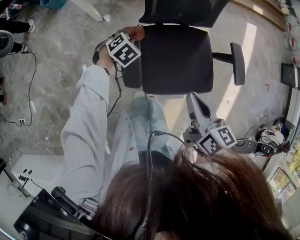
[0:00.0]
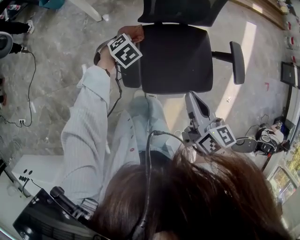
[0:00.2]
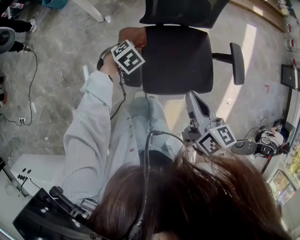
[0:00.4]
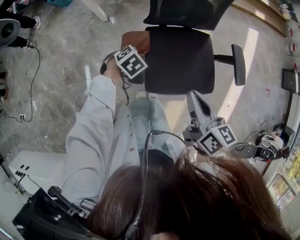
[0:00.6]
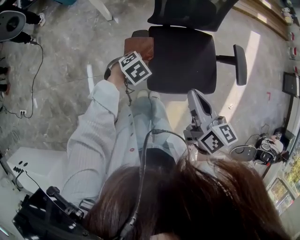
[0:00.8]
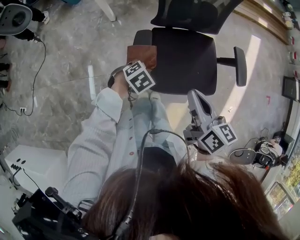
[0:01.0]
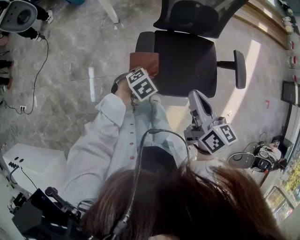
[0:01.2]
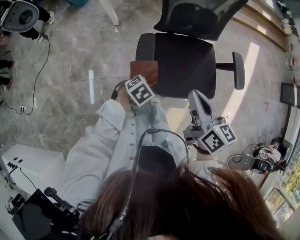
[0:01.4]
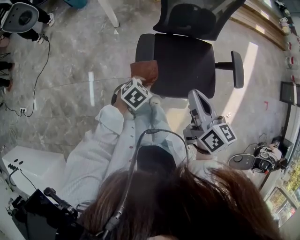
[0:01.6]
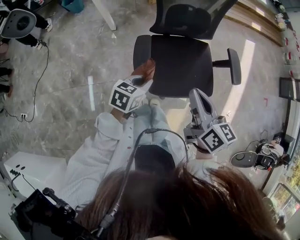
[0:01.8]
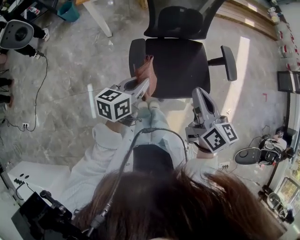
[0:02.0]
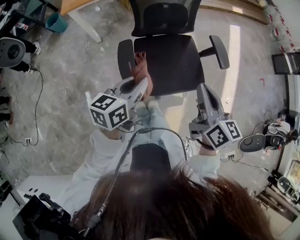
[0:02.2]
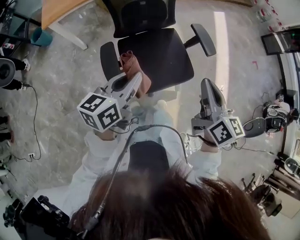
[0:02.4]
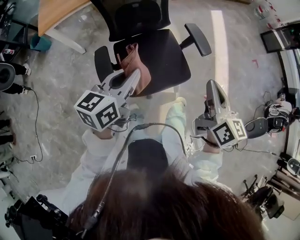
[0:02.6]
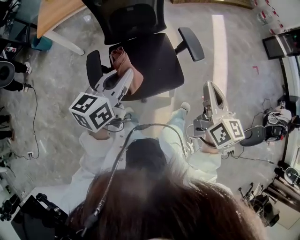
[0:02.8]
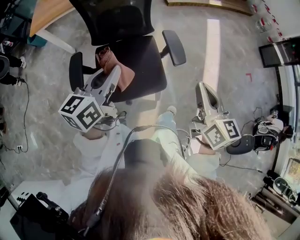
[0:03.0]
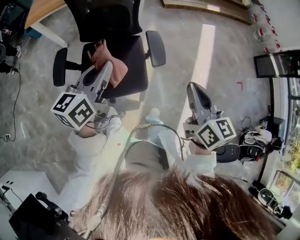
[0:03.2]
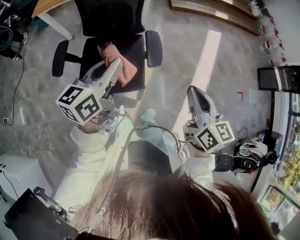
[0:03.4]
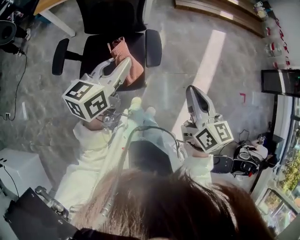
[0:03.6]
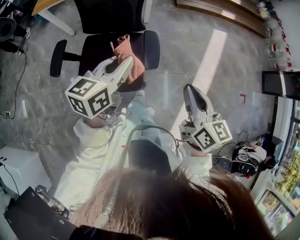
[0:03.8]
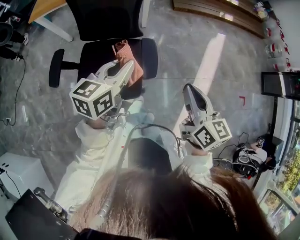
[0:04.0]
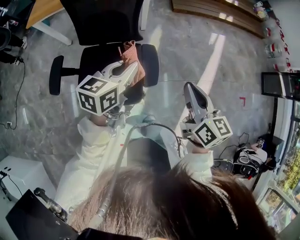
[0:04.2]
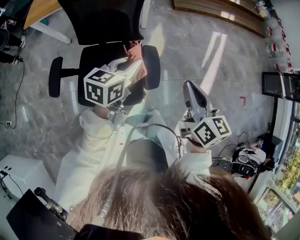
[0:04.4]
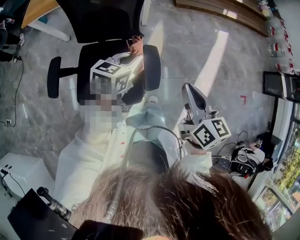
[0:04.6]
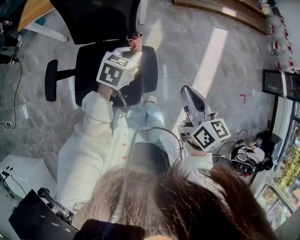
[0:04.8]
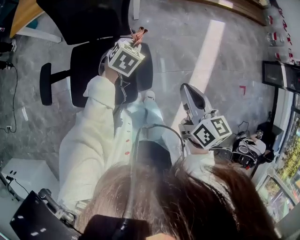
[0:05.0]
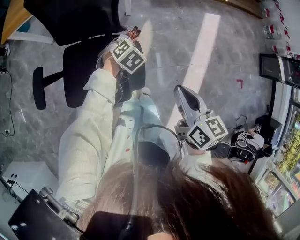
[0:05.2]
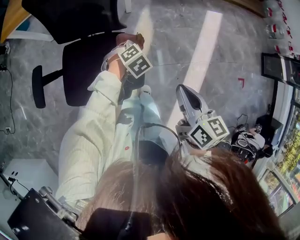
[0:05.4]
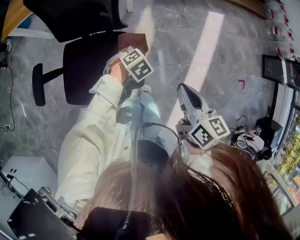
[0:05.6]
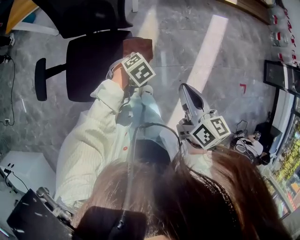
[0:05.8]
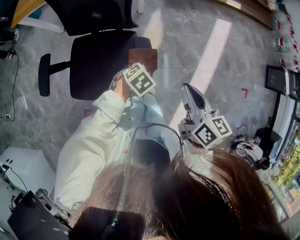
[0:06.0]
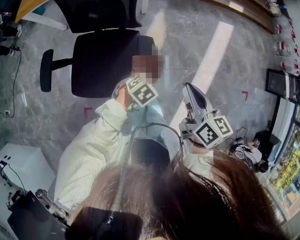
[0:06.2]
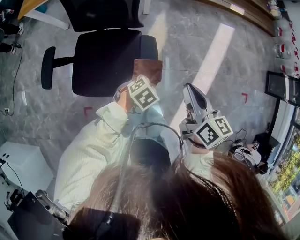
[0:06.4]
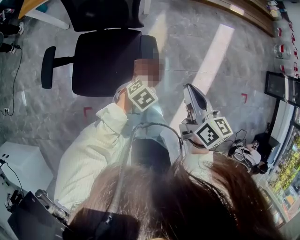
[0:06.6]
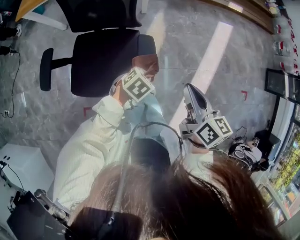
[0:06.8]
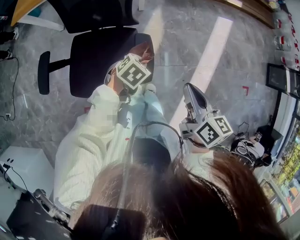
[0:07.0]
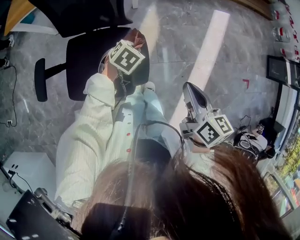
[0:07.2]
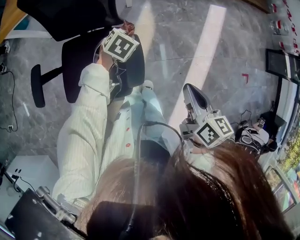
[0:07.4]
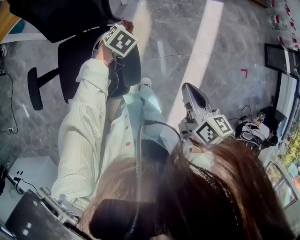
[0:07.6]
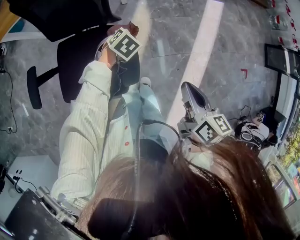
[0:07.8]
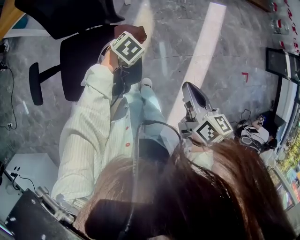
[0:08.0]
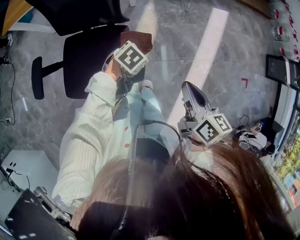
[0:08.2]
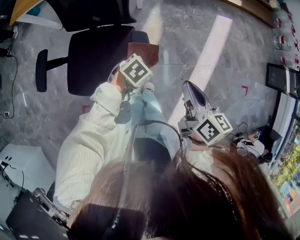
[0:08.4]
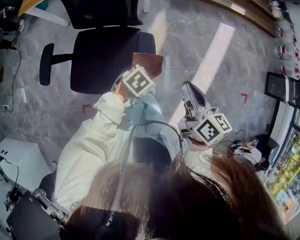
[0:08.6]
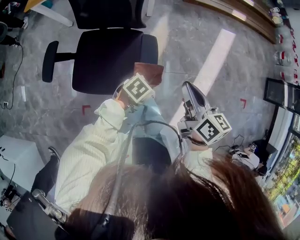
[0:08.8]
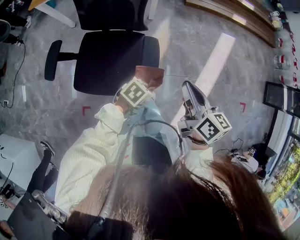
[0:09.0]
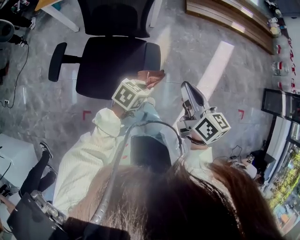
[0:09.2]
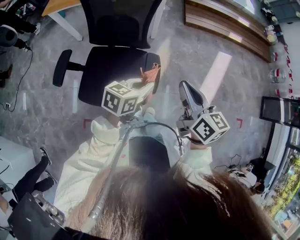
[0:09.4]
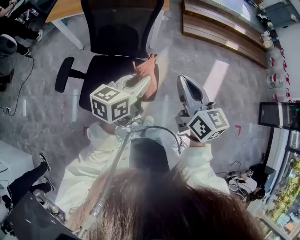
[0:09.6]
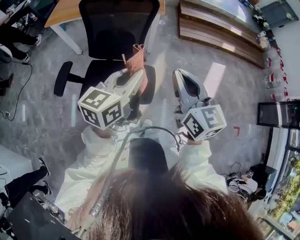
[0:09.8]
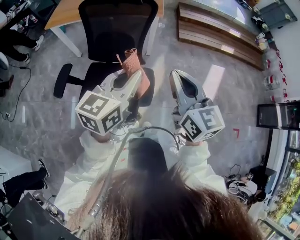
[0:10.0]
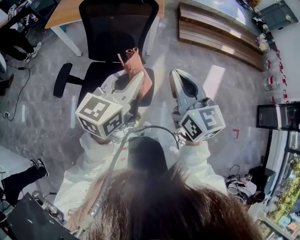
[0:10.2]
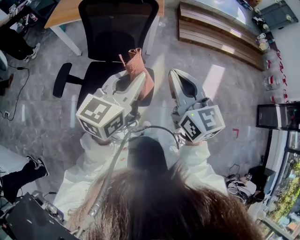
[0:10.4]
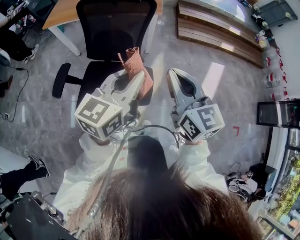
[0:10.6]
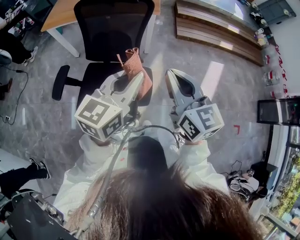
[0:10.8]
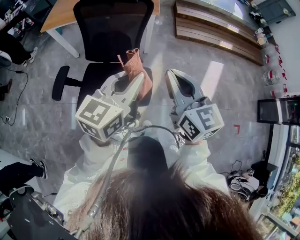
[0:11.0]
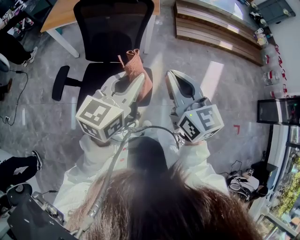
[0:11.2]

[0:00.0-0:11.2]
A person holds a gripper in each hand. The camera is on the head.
0:00.0 to 0:01.6: The right gripper shifts approximately 10 cm backward and upward. The left gripper heads backward, covering roughly 25 cm, and changes its angle by roughly 20 degrees.
0:01.6 to 0:03.2: The right gripper travels to the right by approximately 50 cm, while the left gripper travels to the right and upward by roughly 40 cm, and angles its fingers upward, by roughly 50 degrees.
0:03.2 to 0:04.8: The left gripper heads forward, downward and to the right, covering roughly 35 cm, and tilts its fingers about 30 degrees downward. The right gripper is displaced forward by approximately 20 cm.
0:04.8 to 0:06.4: The left gripper is displaced backward, downward and to the right by about 20 cm, and changes its angle by about 30 degrees.
0:06.4 to 0:08.0: The left gripper is displaced forward by some 15 cm; the right gripper shifts about 5 cm to the right.
0:08.0 to 0:09.6: The left gripper travels upward by about 30 cm, and tips its fingers upward by approximately 50 degrees. Meanwhile the right gripper moves upward, approximately 15 cm, and rotates approximately 30 degrees.
0:09.6 to 0:11.2: The left gripper goes roughly 10 cm upward.

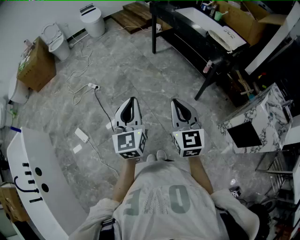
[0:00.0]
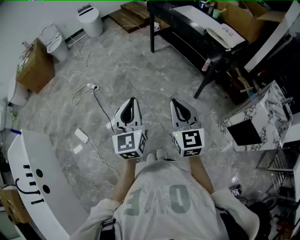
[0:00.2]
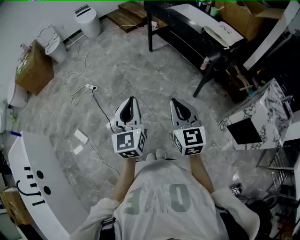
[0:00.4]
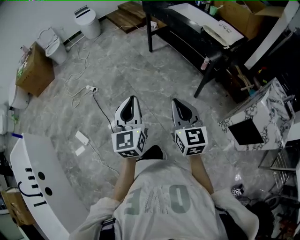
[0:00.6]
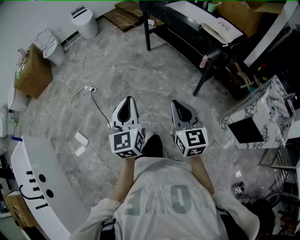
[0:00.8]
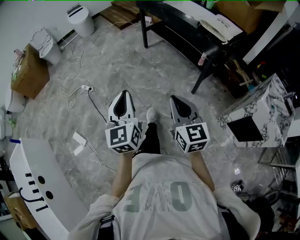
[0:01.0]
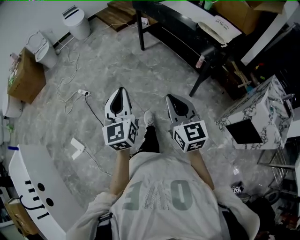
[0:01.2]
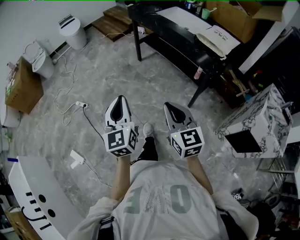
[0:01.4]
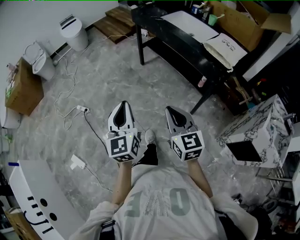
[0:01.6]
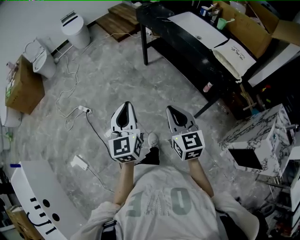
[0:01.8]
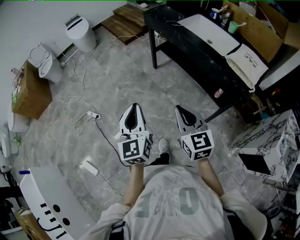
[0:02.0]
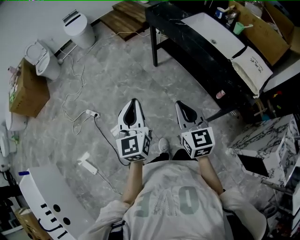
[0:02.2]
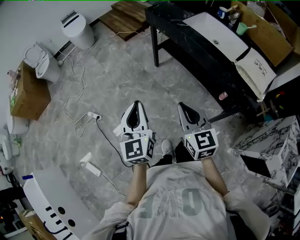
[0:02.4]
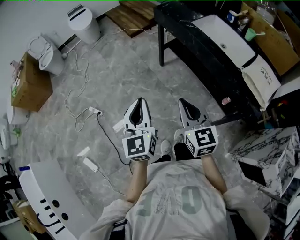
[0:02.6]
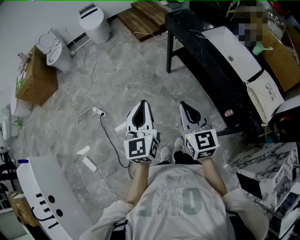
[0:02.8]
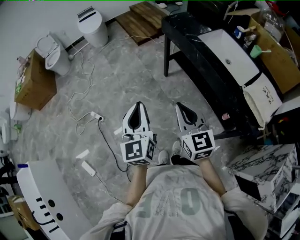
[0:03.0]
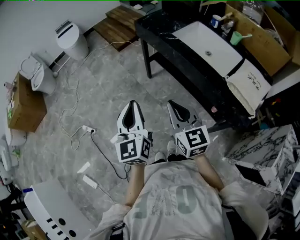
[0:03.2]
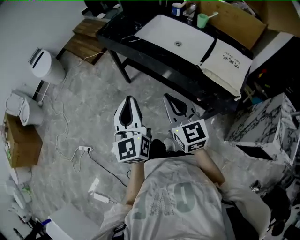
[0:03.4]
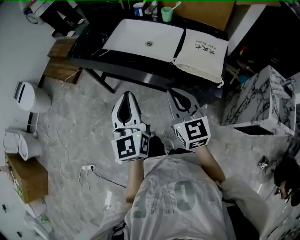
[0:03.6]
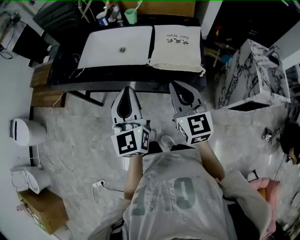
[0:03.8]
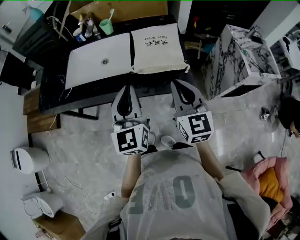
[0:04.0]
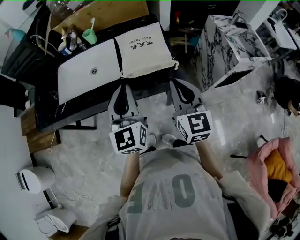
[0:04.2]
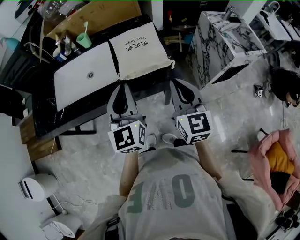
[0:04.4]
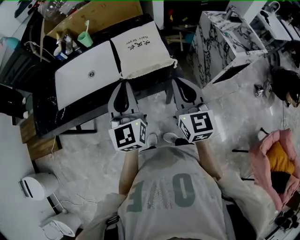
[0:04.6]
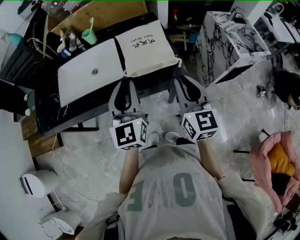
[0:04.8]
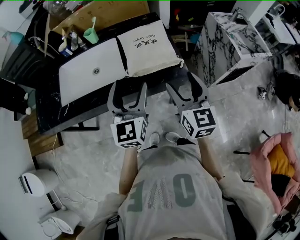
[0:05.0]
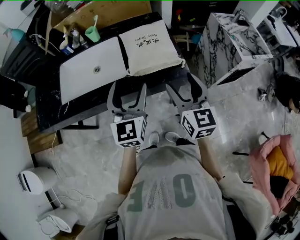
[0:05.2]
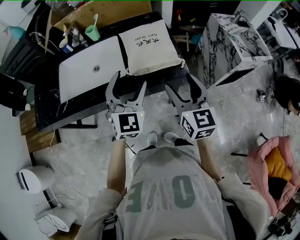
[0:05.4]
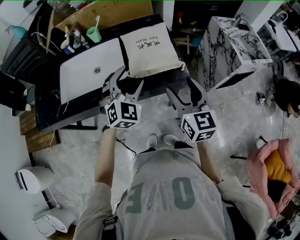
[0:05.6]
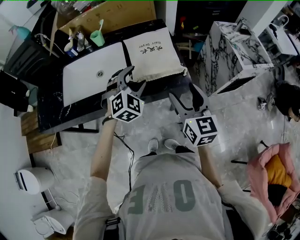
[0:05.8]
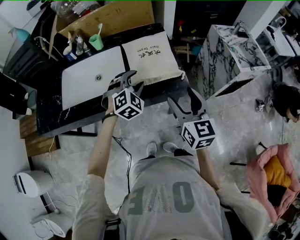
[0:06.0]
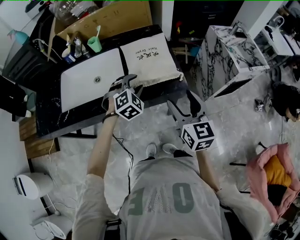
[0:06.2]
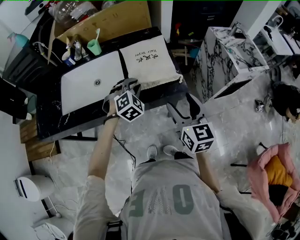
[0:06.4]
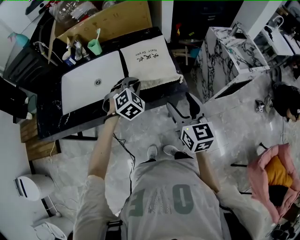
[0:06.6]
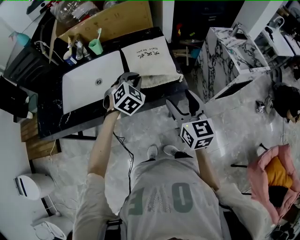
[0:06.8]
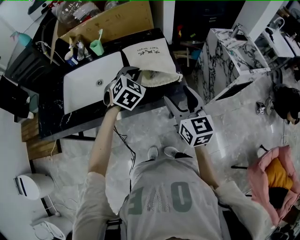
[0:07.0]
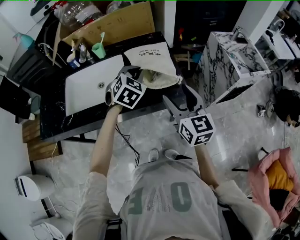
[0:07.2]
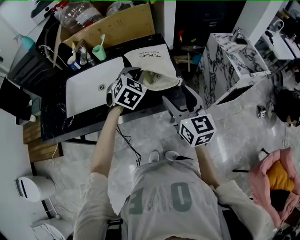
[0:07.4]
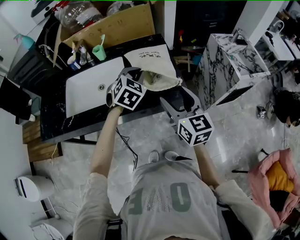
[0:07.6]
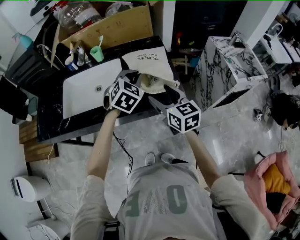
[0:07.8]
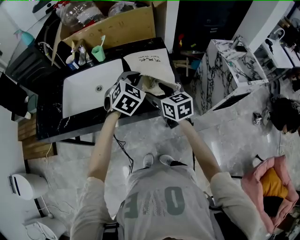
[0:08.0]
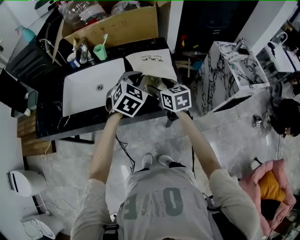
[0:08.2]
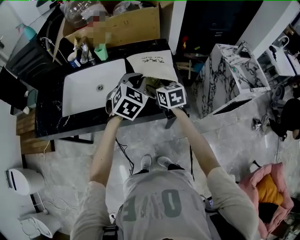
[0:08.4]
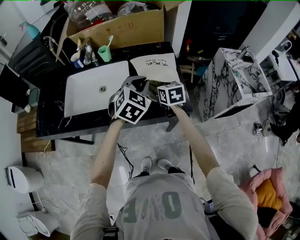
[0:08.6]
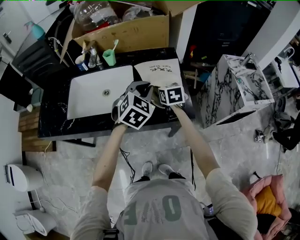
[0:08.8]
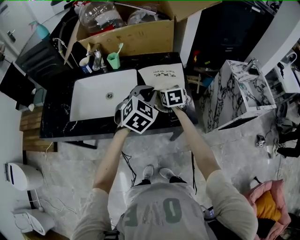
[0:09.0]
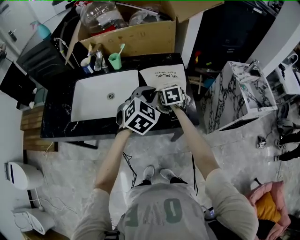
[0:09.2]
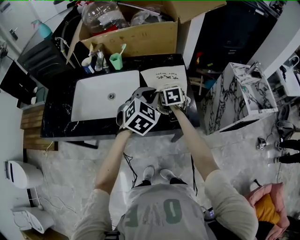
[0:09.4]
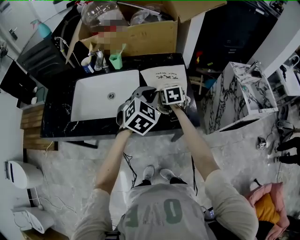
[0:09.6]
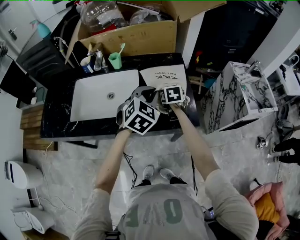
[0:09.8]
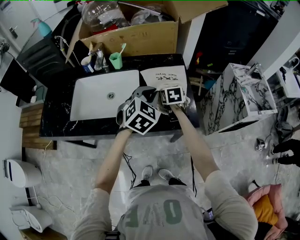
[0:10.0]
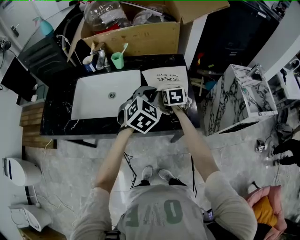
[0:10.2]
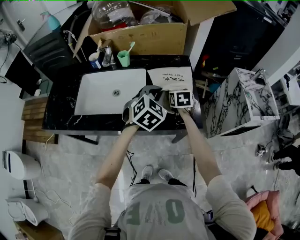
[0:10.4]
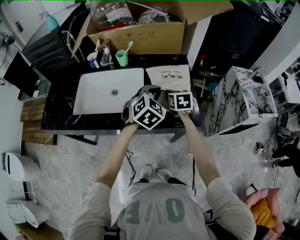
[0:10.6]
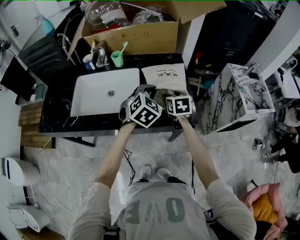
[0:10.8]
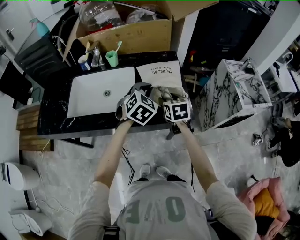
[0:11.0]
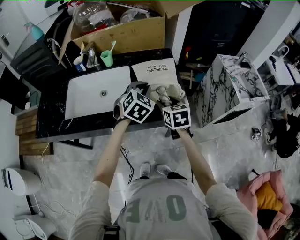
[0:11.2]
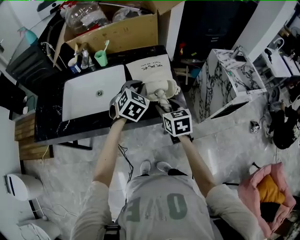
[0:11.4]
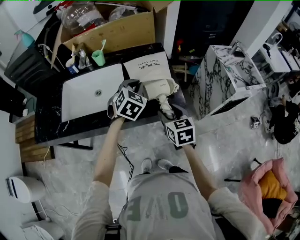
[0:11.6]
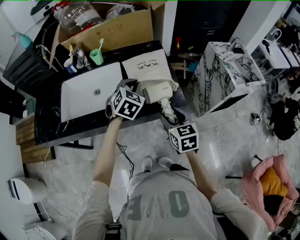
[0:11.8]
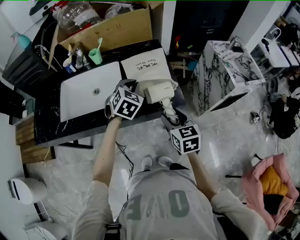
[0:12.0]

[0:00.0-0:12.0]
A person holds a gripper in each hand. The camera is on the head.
0:00.0 to 0:01.6: Both grippers move forward, approximately 25 cm.
0:01.6 to 0:03.0: The two grippers go roughly 30 cm forward.
0:03.0 to 0:04.4: The left gripper shifts by some 50 cm, and changes its angle by roughly 70 degrees. Meanwhile the right gripper changes place by some 40 cm, and rotates approximately 80 degrees.
0:04.4 to 0:06.0: The right gripper opens. The left gripper moves downward and forward, about 15 cm, tilts its fingers some 40 degrees downward, and opens its fingers.
0:06.0 to 0:07.6: The left gripper moves upward, roughly 5 cm, and closes its fingers.
0:07.6 to 0:09.0: The right gripper heads forward and downward, covering approximately 25 cm, and angles its fingers downward, by some 30 degrees.
0:09.0 to 0:10.4: The grippers move only a little.
0:10.4 to 0:12.0: The right gripper heads backward, covering roughly 25 cm.
